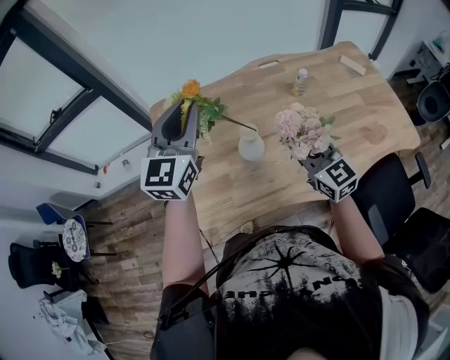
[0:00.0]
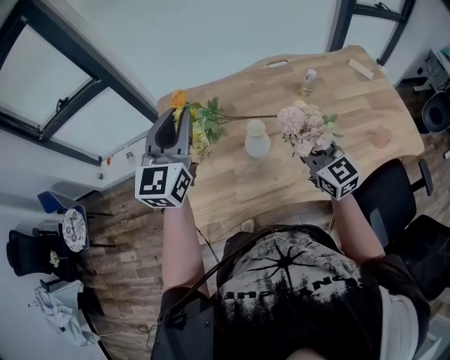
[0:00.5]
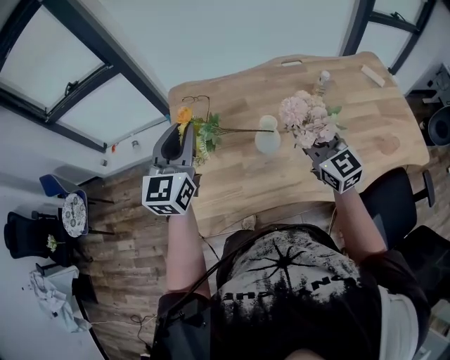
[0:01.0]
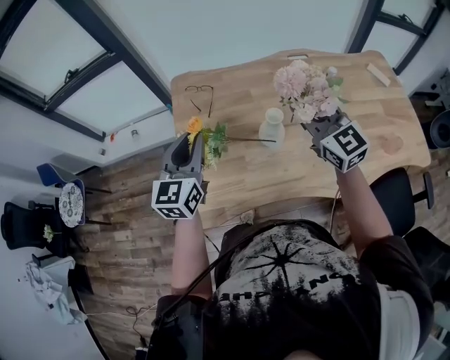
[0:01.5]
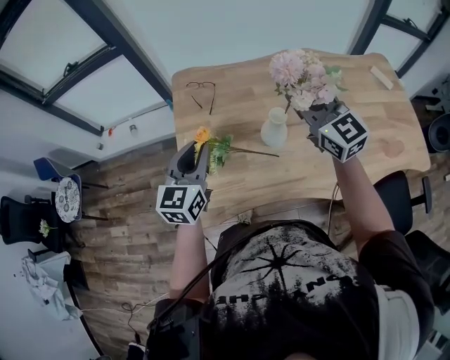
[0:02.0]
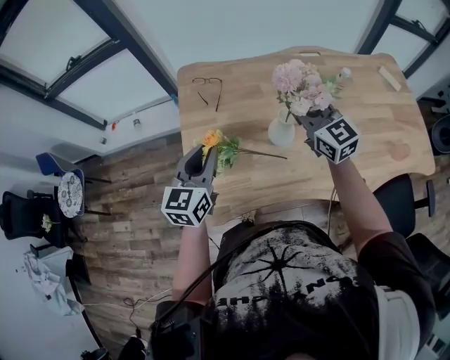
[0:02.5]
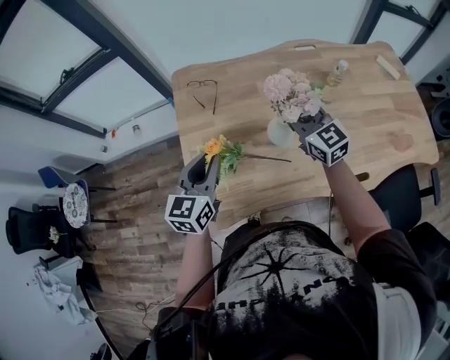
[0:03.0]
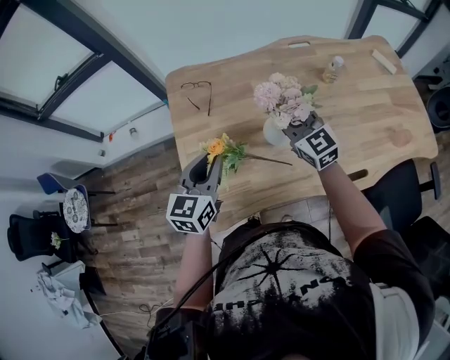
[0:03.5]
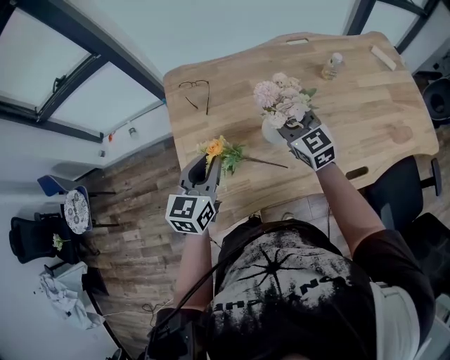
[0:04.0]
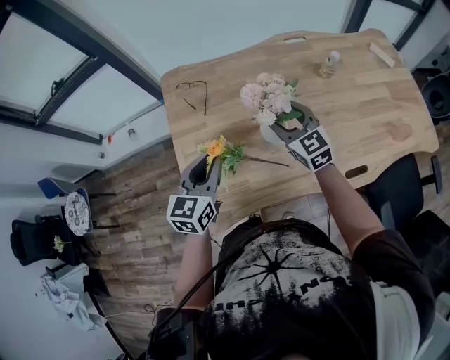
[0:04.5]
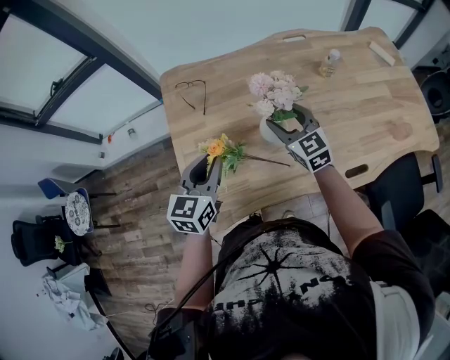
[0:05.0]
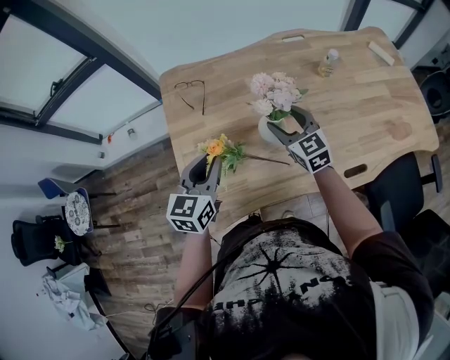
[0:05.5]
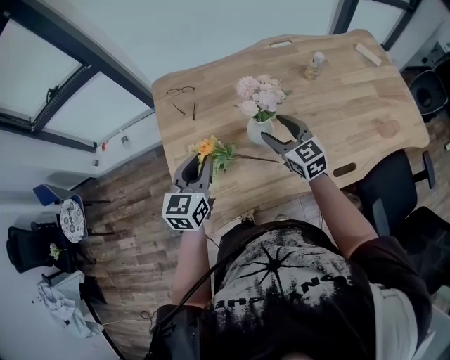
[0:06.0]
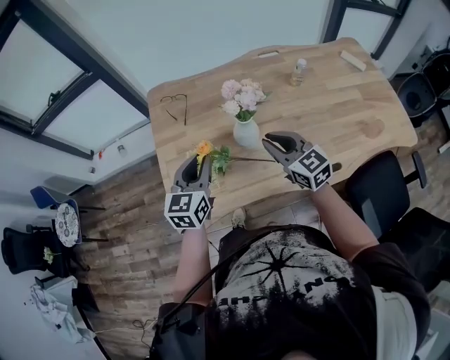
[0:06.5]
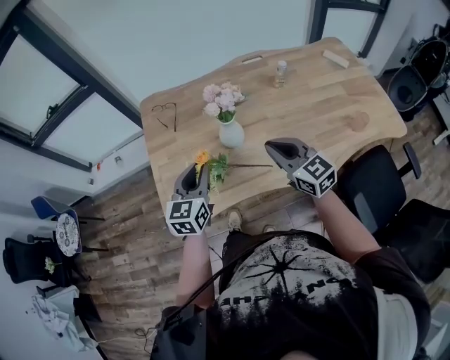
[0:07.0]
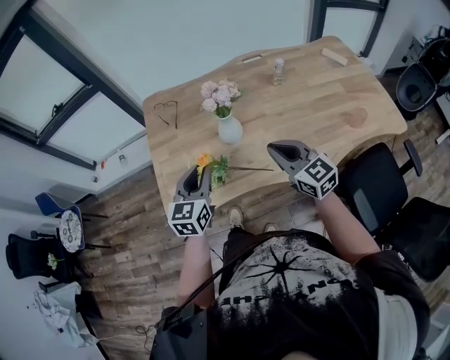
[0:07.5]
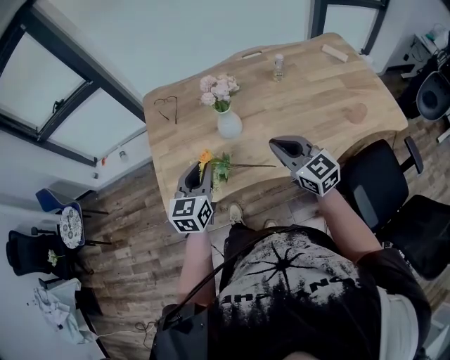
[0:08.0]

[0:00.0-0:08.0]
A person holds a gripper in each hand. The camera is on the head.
0:00.0 to 0:02.0: The left gripper is displaced downward, to the left and backward by about 20 cm, and rotates approximately 20 degrees. Meanwhile the right gripper shifts some 15 cm upward, forward and to the left.
0:02.0 to 0:04.0: The right gripper heads downward, covering about 15 cm, and opens up. The left gripper goes roughly 5 cm downward.
0:04.0 to 0:06.0: The right gripper moves about 5 cm, and opens up.
0:06.0 to 0:08.0: The left gripper shifts approximately 15 cm backward and to the right; the right gripper moves backward, upward and to the right, roughly 20 cm, and closes its fingers.

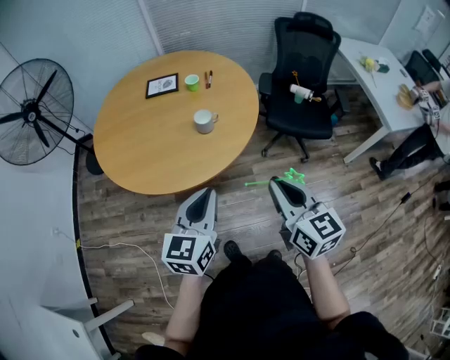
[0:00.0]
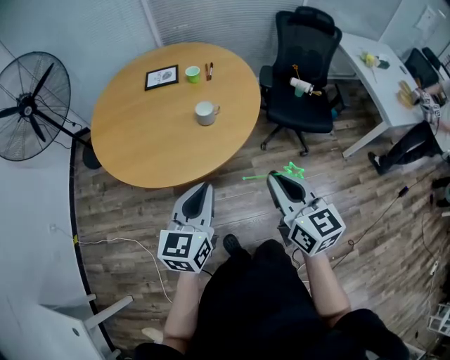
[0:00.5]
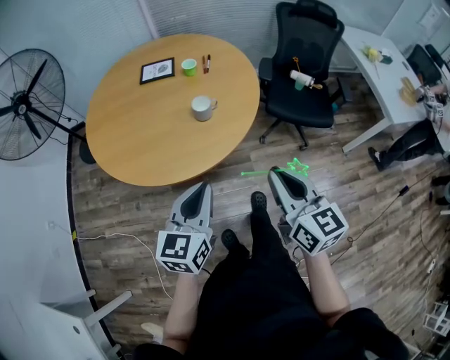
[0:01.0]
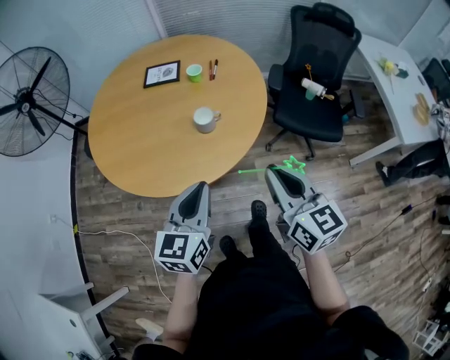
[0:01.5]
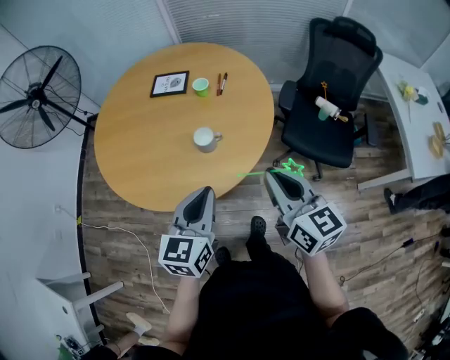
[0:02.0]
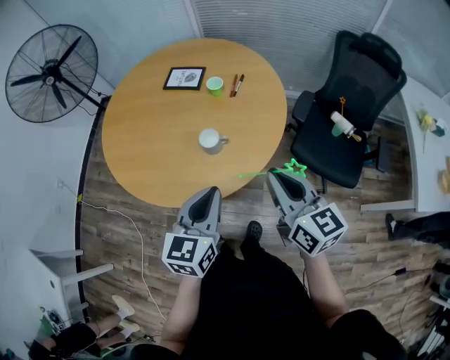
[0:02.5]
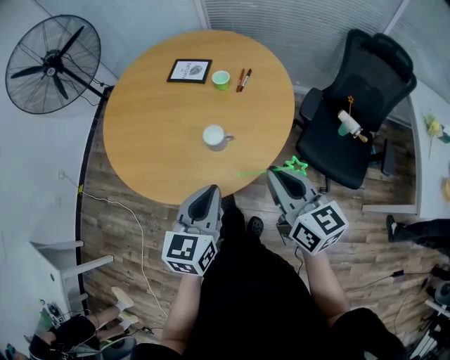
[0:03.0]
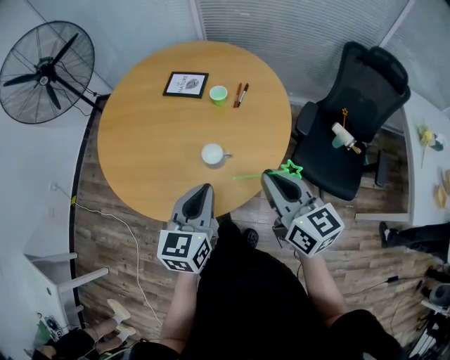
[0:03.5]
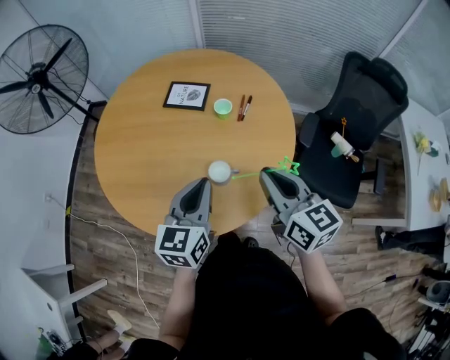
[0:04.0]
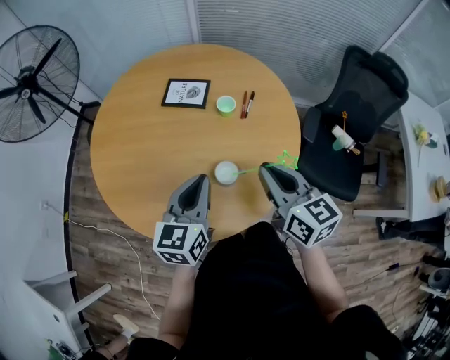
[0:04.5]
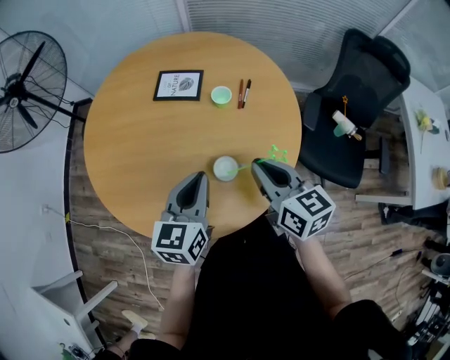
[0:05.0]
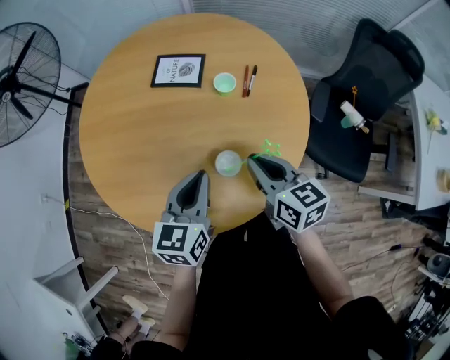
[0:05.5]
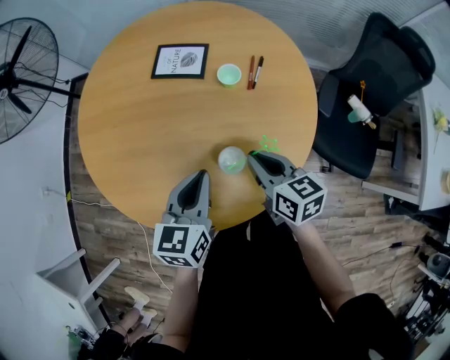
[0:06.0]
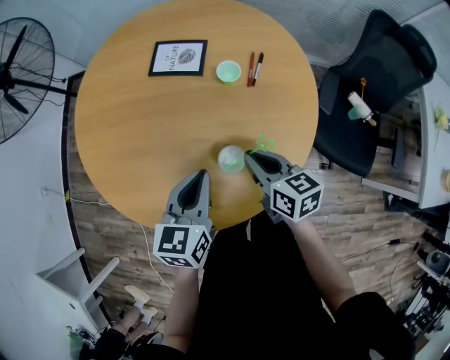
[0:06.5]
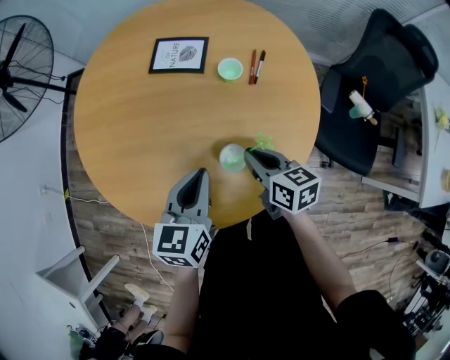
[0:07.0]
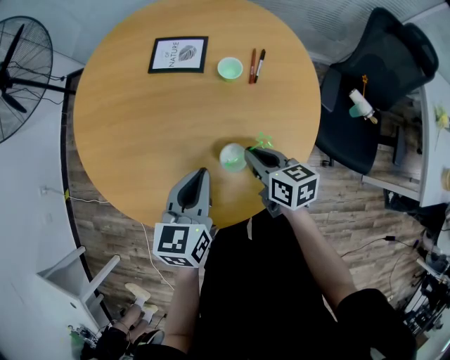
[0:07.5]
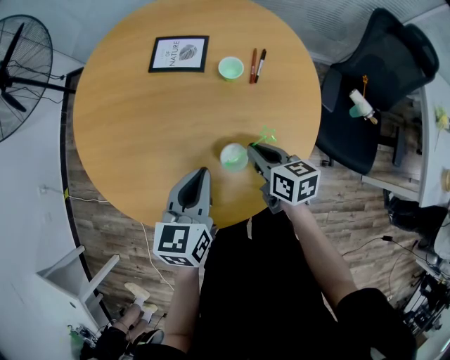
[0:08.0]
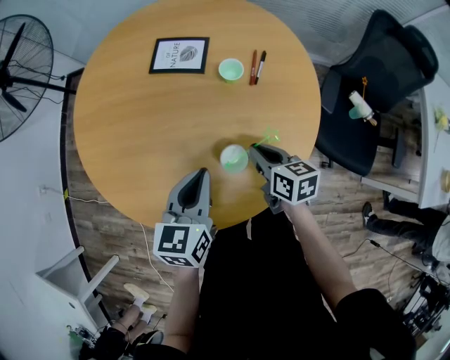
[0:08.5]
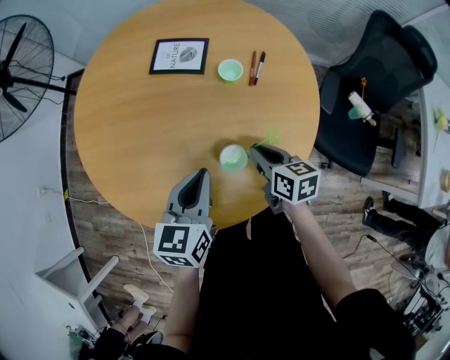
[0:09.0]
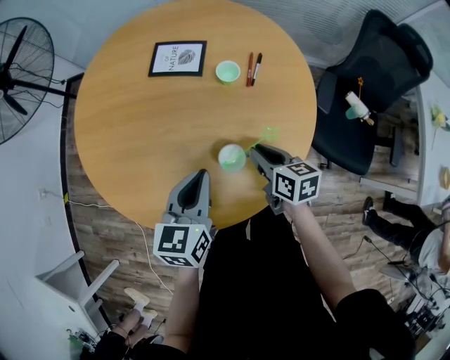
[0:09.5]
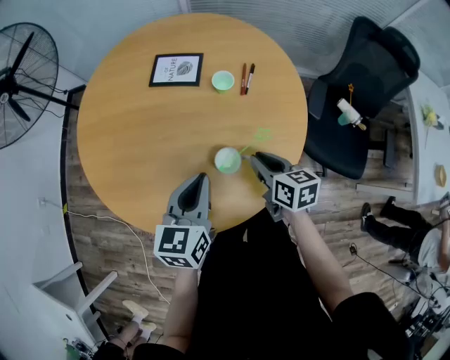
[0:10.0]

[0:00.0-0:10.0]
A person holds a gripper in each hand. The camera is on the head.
0:00.0 to 0:02.0: The right gripper goes approximately 20 cm forward, while the left gripper is displaced forward and to the right by approximately 15 cm.
0:02.0 to 0:04.0: Both grippers move forward, about 20 cm.
0:04.0 to 0:06.0: The left gripper travels downward and forward by roughly 10 cm, while the right gripper goes roughly 20 cm downward and forward, and rotates about 20 degrees.
0:06.0 to 0:08.0: The right gripper shifts roughly 5 cm downward.
0:08.0 to 0:10.0: The grippers make only small movements.

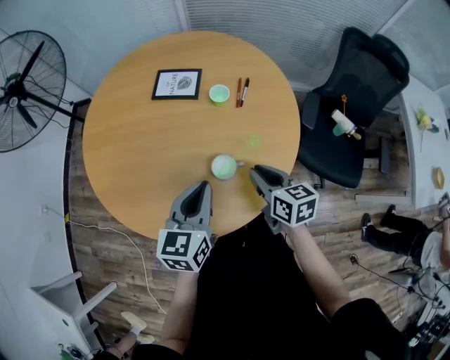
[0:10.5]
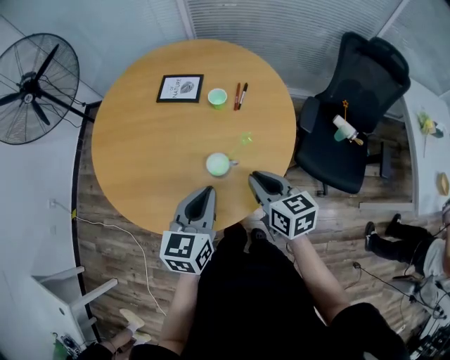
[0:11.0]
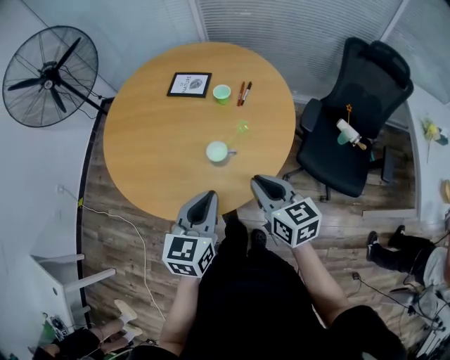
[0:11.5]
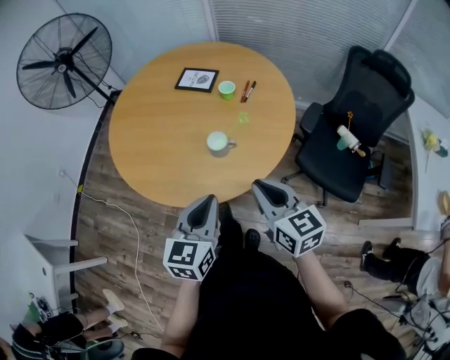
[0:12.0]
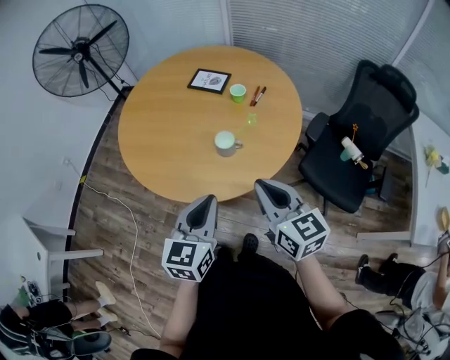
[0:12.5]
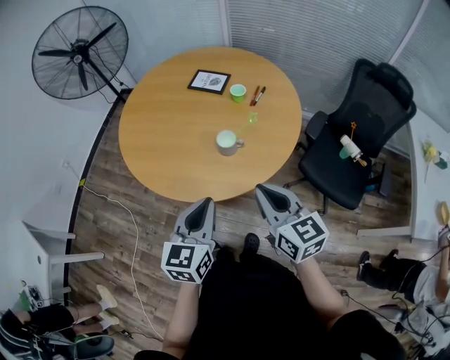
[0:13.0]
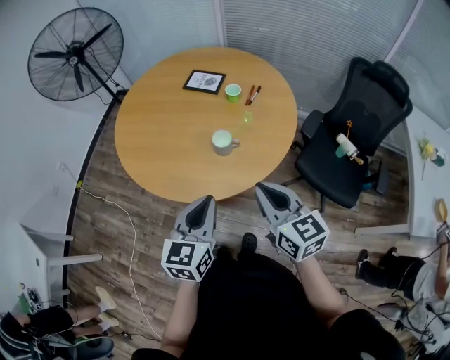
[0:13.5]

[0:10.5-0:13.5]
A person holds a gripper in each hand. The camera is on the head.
0:10.5 to 0:12.0: The left gripper heads backward, covering roughly 20 cm. Meanwhile the right gripper shifts approximately 20 cm backward and upward, and swivels roughly 20 degrees.
0:12.0 to 0:13.5: The grippers move only a little.

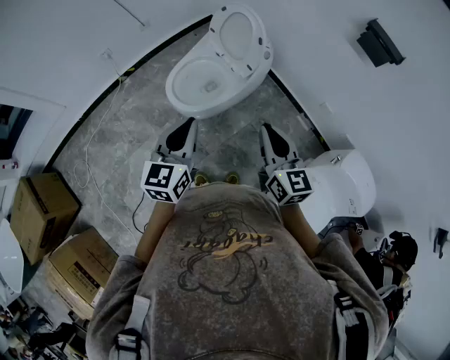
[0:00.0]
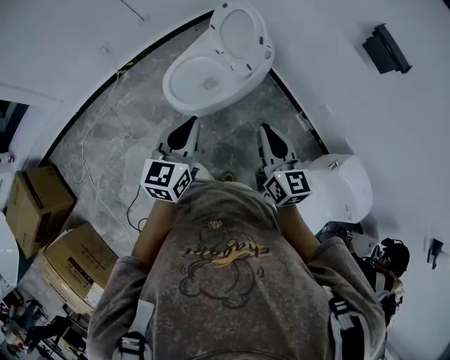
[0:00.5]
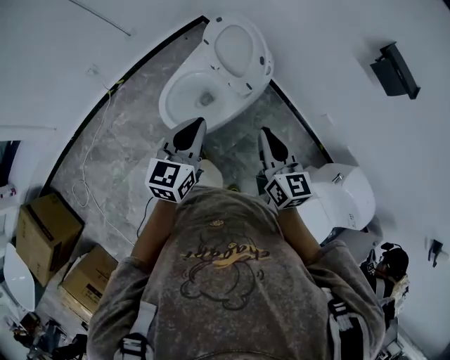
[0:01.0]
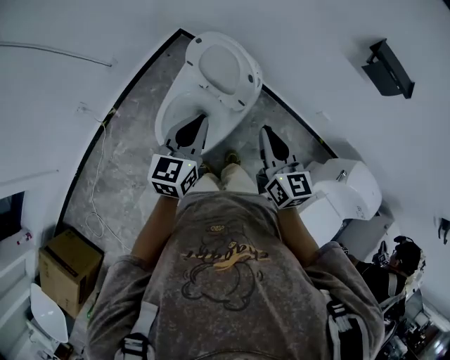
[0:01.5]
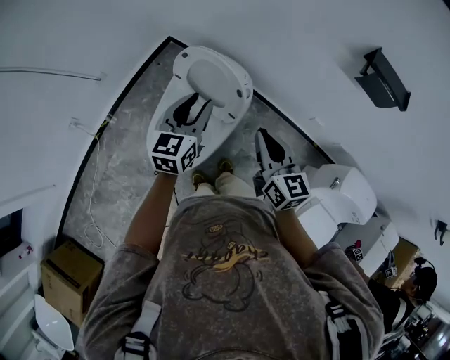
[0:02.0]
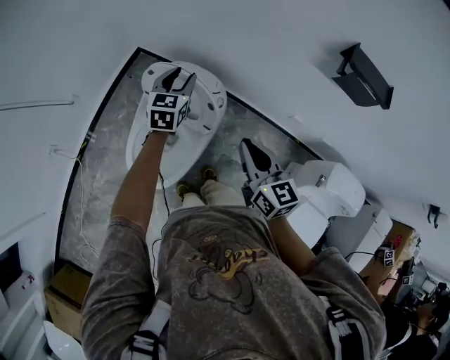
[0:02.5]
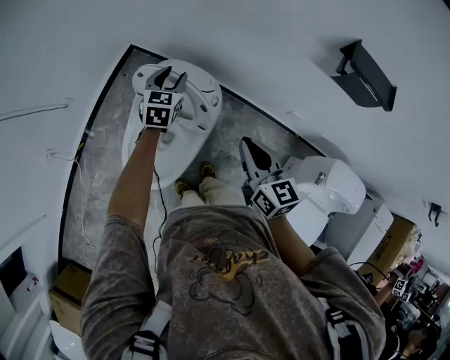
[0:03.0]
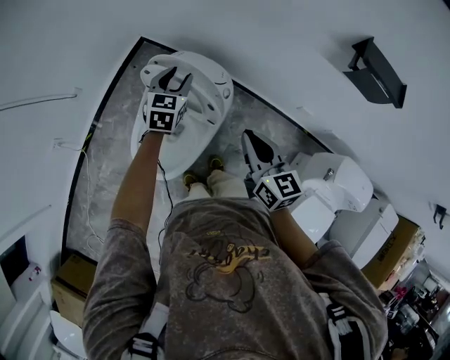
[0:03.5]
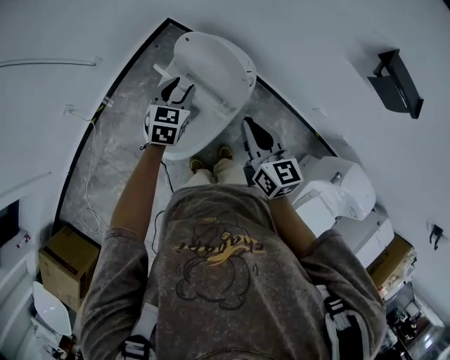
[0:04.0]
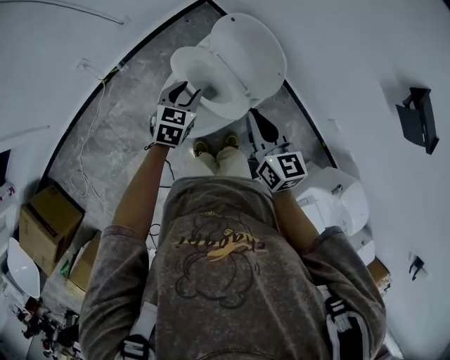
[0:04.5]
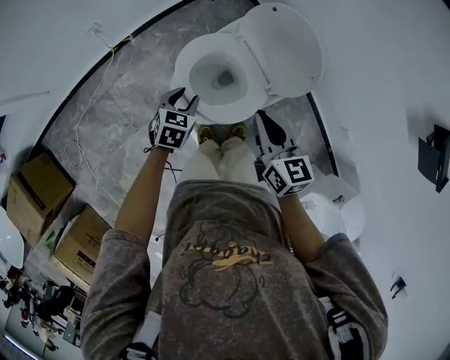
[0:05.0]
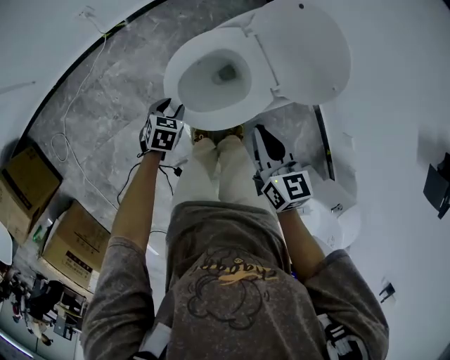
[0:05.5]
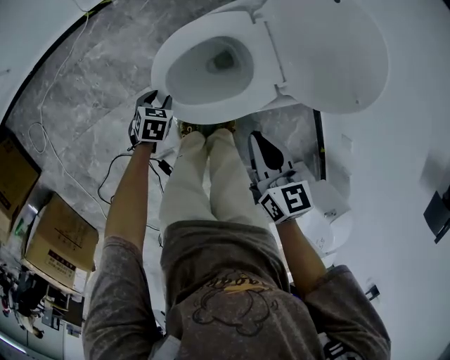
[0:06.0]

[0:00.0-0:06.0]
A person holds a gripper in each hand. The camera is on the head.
0:00.0 to 0:02.0: The two grippers go roughly 35 cm forward. The left gripper turns by about 20 degrees, and opens its fingers.
0:02.0 to 0:04.0: The right gripper ends up some 5 cm from where it was. The left gripper goes some 15 cm downward and to the left, moves approximately 20 cm forward and comes back, and changes its angle by roughly 20 degrees.
0:04.0 to 0:06.0: The left gripper moves downward, to the left and backward, roughly 50 cm, and points its fingers approximately 30 degrees further downward, while the right gripper heads downward and to the left, covering approximately 30 cm, and swivels some 30 degrees.
